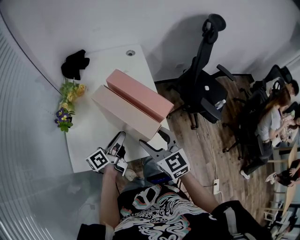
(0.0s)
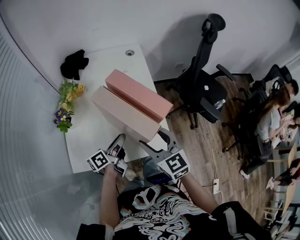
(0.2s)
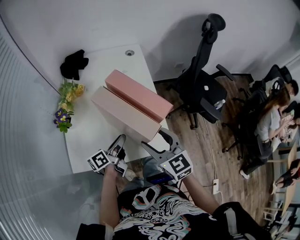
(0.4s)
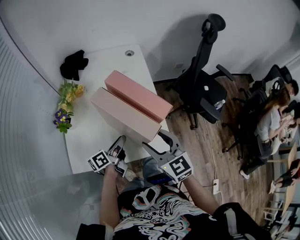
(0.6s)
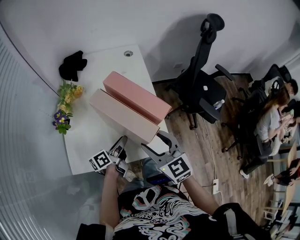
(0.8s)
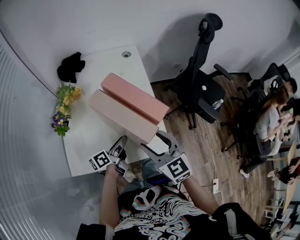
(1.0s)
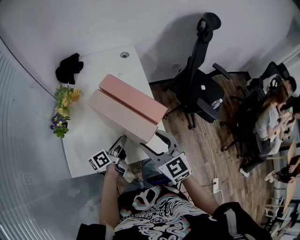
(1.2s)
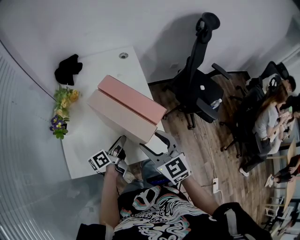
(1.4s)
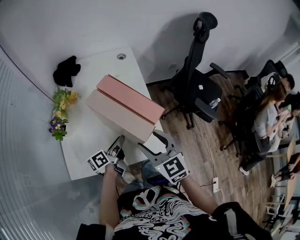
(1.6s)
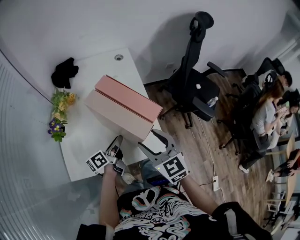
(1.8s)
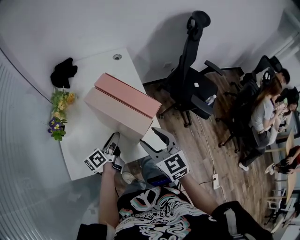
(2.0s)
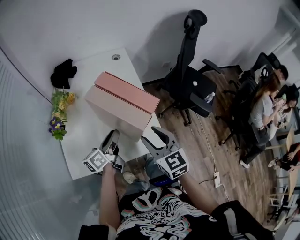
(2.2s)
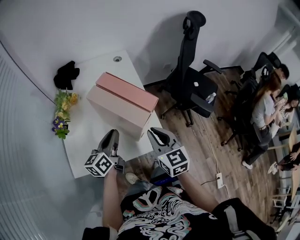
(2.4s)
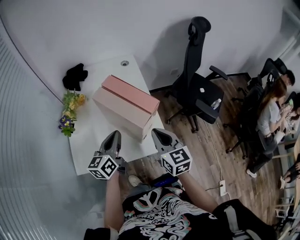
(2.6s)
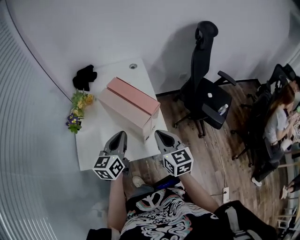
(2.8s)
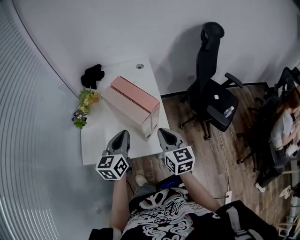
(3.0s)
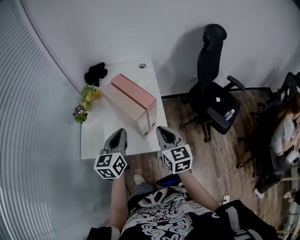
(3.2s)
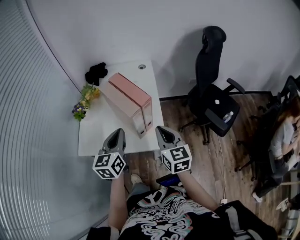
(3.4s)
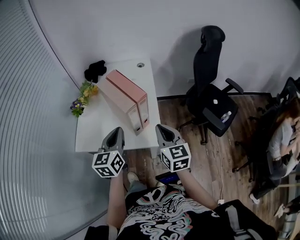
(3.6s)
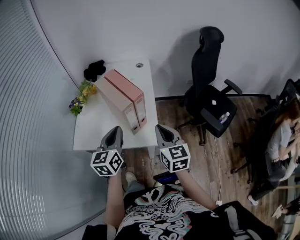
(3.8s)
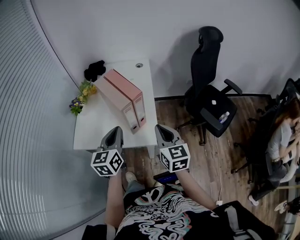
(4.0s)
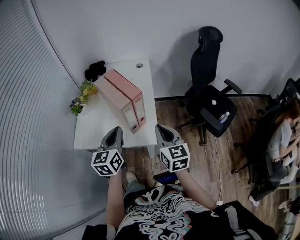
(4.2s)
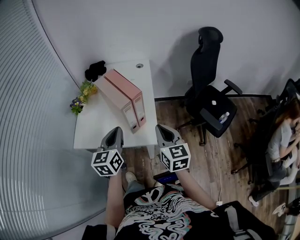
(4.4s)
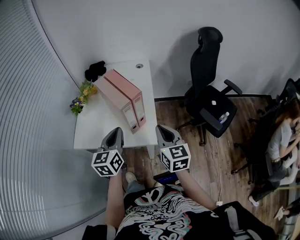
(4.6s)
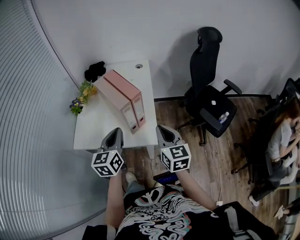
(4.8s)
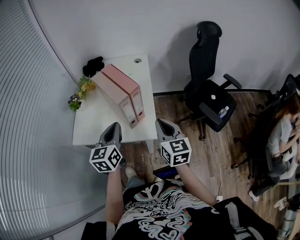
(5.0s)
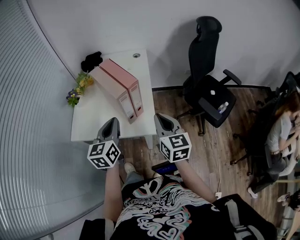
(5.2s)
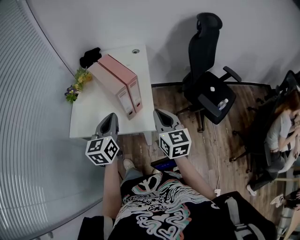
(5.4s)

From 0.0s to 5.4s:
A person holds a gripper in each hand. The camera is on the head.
From 0.0s to 1.4s: The left gripper shifts by about 5 cm.
From 1.4s to 2.8s: The left gripper shifts some 15 cm upward, rolls clockwise, seen from behind, by roughly 50 degrees, and closes up; the right gripper goes about 5 cm to the right, and closes up.
From 2.8s to 4.0s: The right gripper moves to the right and backward, about 10 cm; the left gripper shifts roughly 10 cm backward and to the right.
From 4.0s to 5.4s: Both grippers stay about where they are.

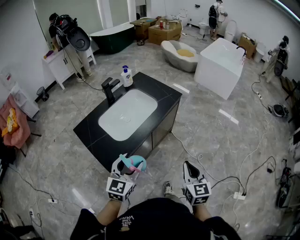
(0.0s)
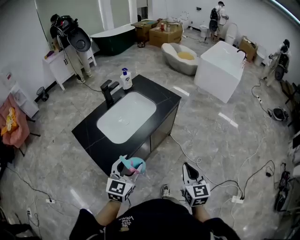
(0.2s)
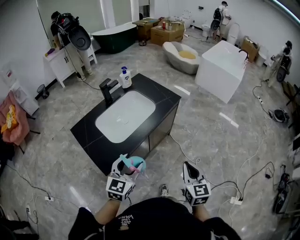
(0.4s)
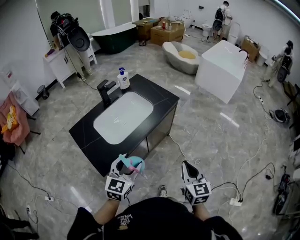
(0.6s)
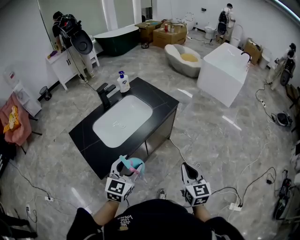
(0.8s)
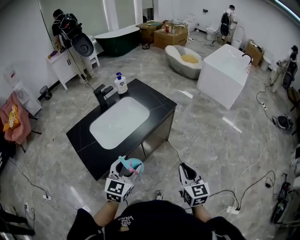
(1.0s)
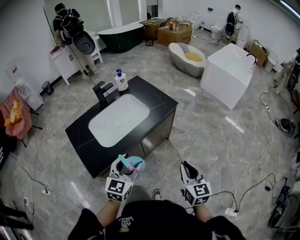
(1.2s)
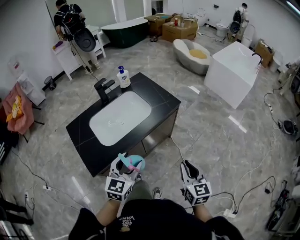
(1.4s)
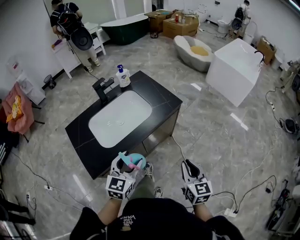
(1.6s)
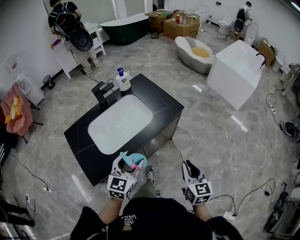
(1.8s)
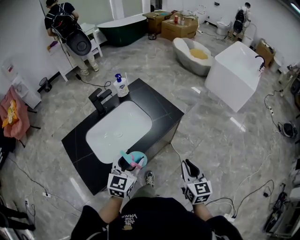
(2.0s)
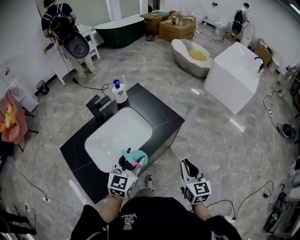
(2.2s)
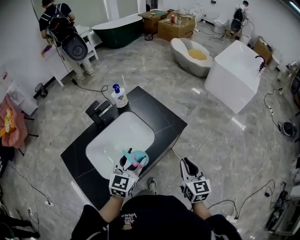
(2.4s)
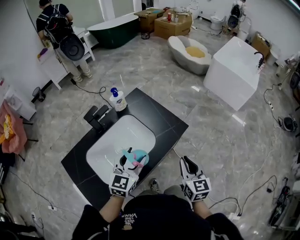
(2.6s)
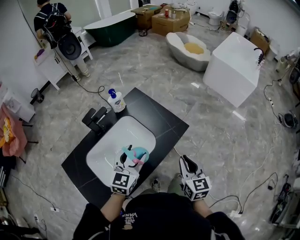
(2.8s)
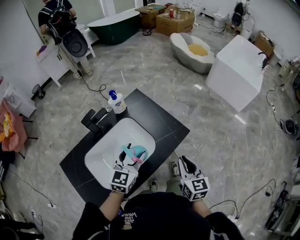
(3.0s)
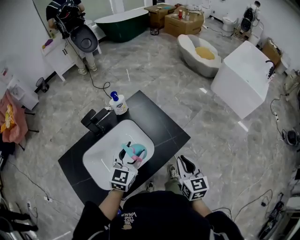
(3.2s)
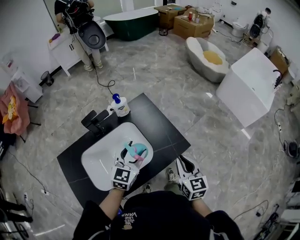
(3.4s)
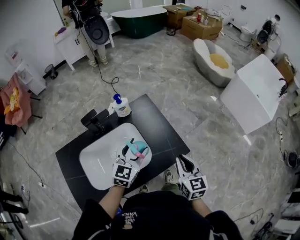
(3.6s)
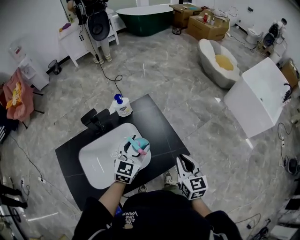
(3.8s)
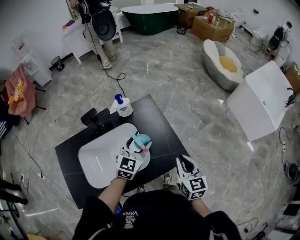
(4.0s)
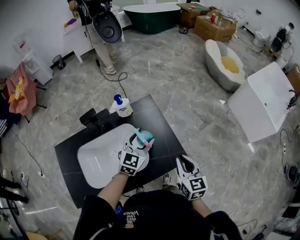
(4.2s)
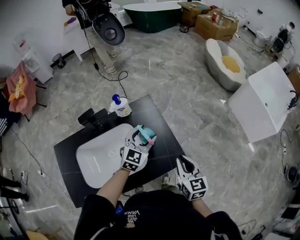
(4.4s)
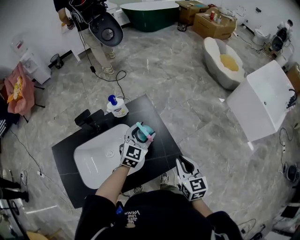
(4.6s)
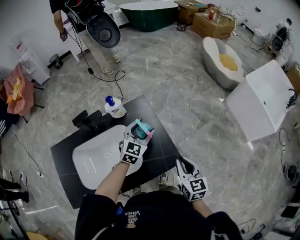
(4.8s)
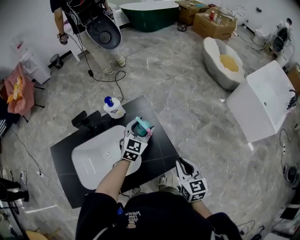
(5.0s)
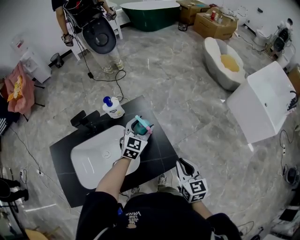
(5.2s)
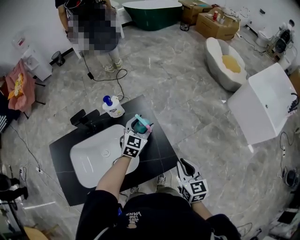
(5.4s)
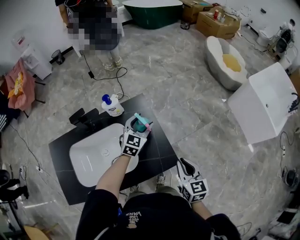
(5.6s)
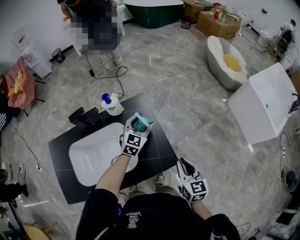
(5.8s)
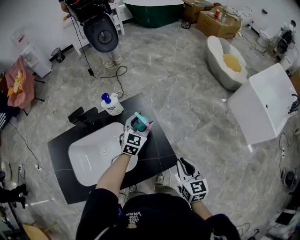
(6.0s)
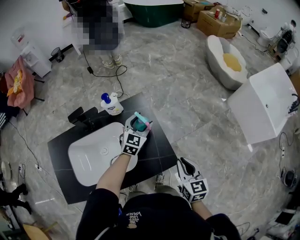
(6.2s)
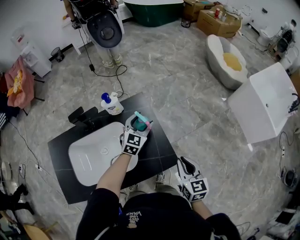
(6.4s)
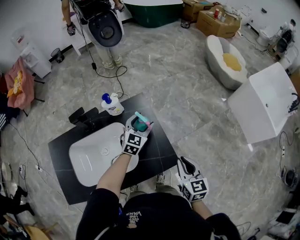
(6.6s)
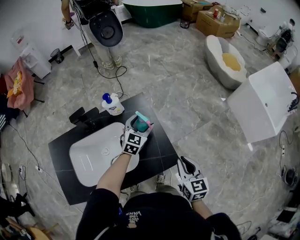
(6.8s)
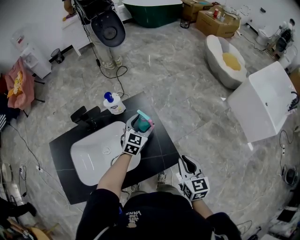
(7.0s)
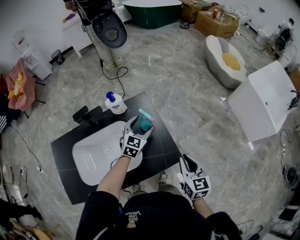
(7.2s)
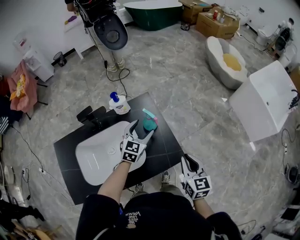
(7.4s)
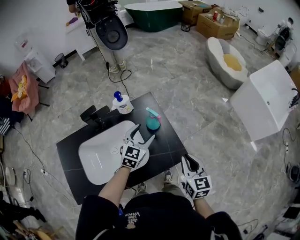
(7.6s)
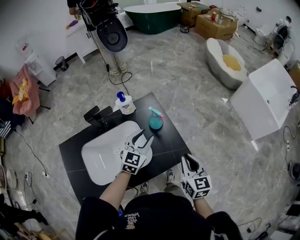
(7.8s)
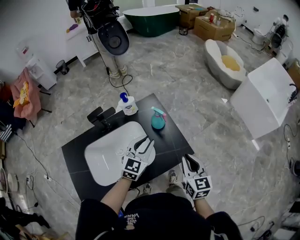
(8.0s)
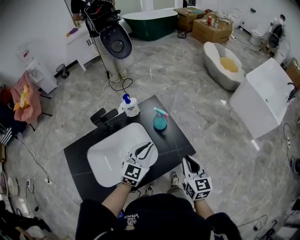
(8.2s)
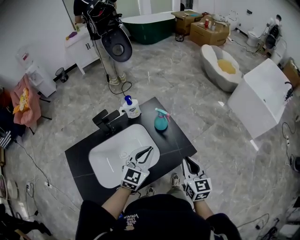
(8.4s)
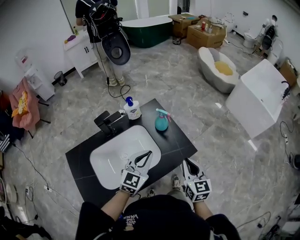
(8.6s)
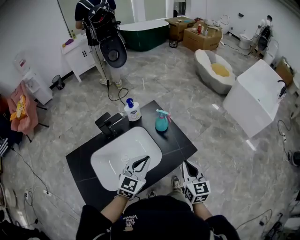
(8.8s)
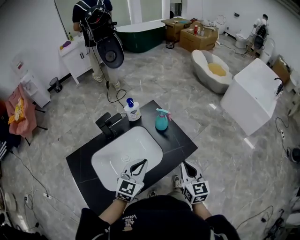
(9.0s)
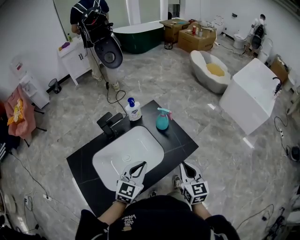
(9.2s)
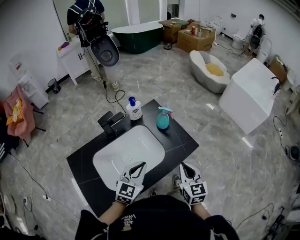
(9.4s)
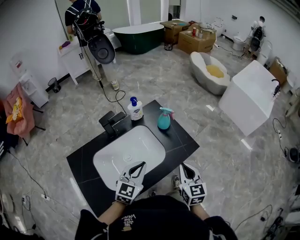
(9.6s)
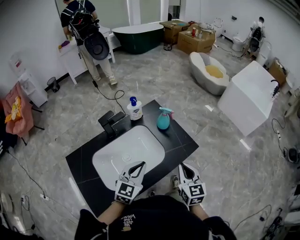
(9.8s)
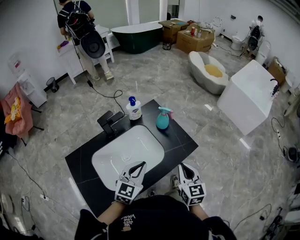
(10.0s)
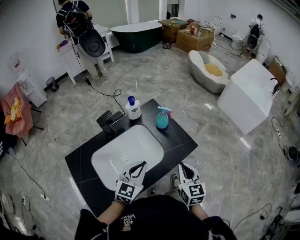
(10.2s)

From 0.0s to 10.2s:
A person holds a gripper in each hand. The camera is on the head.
From 0.0s to 1.4s: The right gripper moves forward and to the right, some 15 cm. The left gripper is displaced to the right and forward by some 15 cm.
From 1.4s to 3.0s: Both grippers travel together forward, approximately 30 cm.
From 3.0s to 4.4s: The right gripper heads forward, covering approximately 15 cm, and changes its angle by some 20 degrees. Meanwhile the left gripper goes roughly 20 cm forward and to the right.
From 4.4s to 5.8s: The right gripper moves to the right, roughly 5 cm, while the left gripper moves forward, some 10 cm.
From 5.8s to 7.2s: The grippers make only small movements.
From 7.2s to 8.8s: The left gripper is displaced backward and upward by approximately 25 cm, and closes its fingers. Meanwhile the right gripper moves backward and to the left, some 15 cm.
From 8.8s to 10.2s: The right gripper moves approximately 5 cm, while the left gripper moves approximately 5 cm.

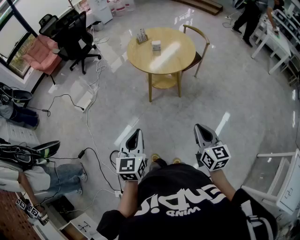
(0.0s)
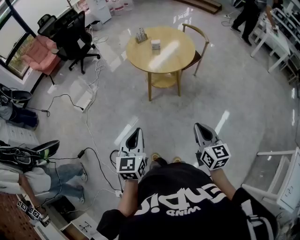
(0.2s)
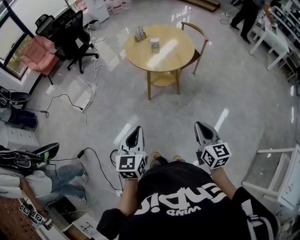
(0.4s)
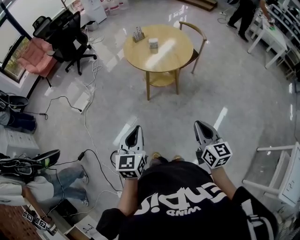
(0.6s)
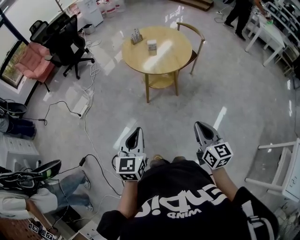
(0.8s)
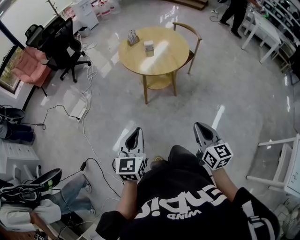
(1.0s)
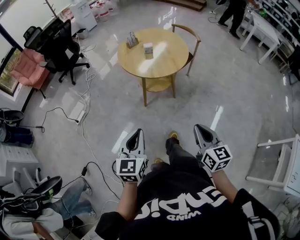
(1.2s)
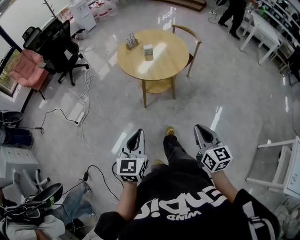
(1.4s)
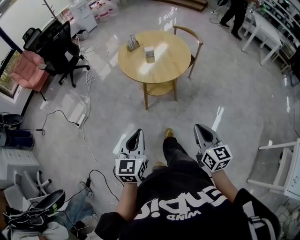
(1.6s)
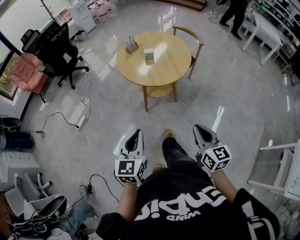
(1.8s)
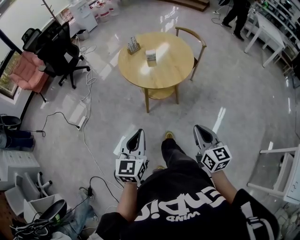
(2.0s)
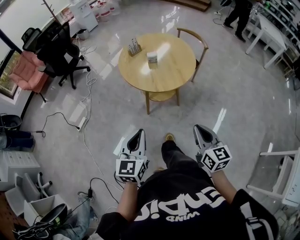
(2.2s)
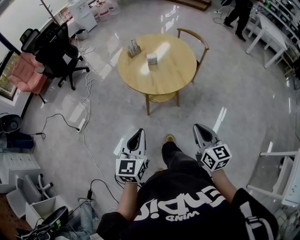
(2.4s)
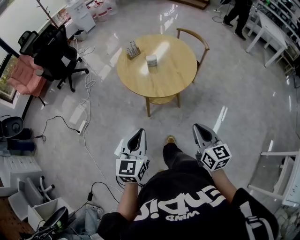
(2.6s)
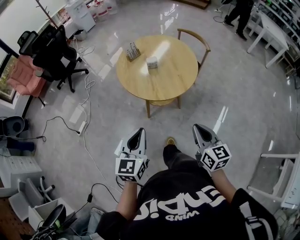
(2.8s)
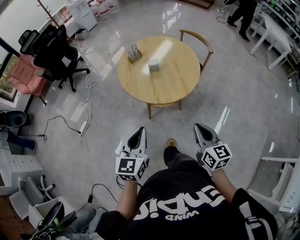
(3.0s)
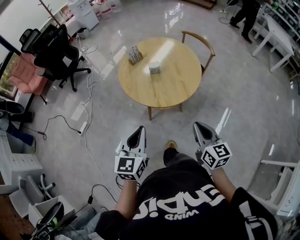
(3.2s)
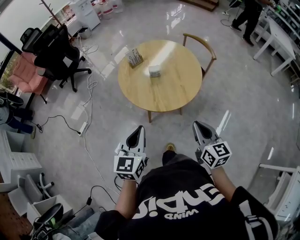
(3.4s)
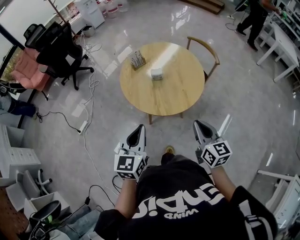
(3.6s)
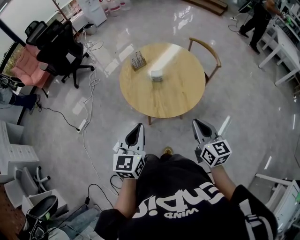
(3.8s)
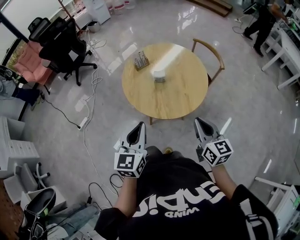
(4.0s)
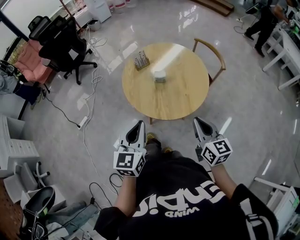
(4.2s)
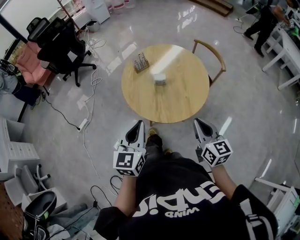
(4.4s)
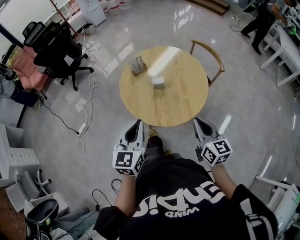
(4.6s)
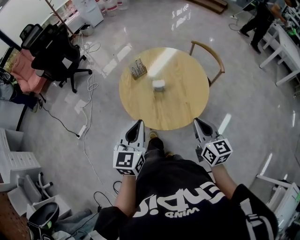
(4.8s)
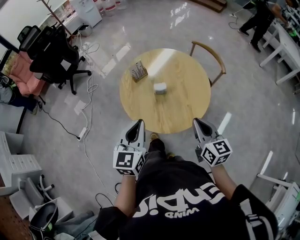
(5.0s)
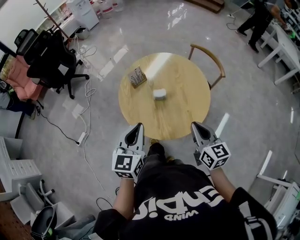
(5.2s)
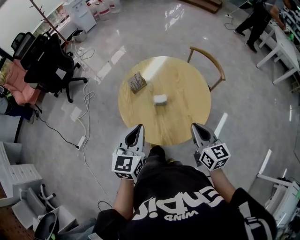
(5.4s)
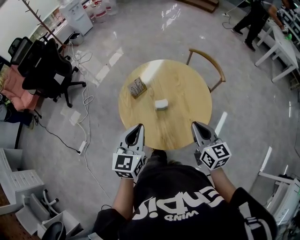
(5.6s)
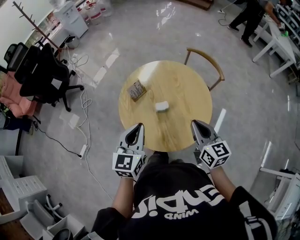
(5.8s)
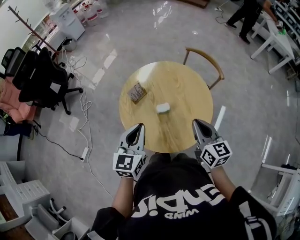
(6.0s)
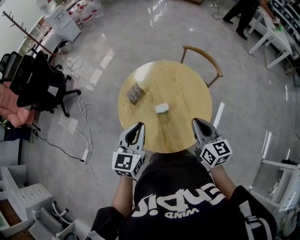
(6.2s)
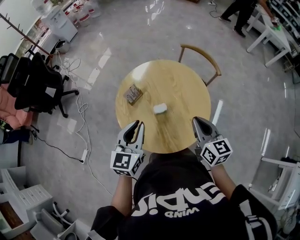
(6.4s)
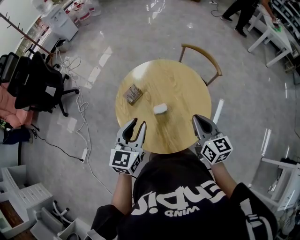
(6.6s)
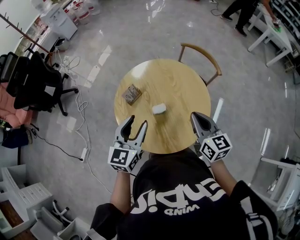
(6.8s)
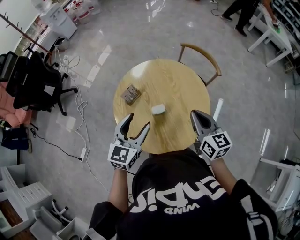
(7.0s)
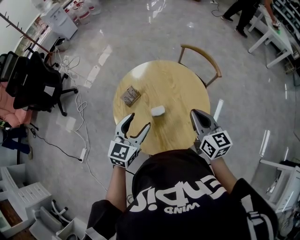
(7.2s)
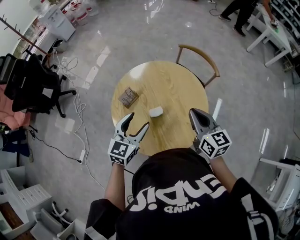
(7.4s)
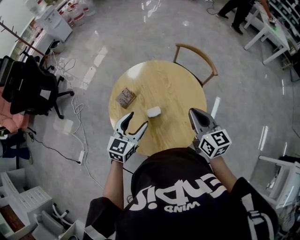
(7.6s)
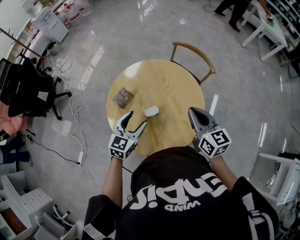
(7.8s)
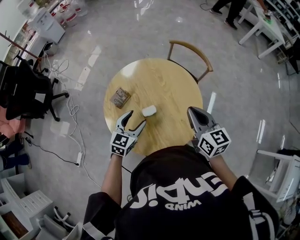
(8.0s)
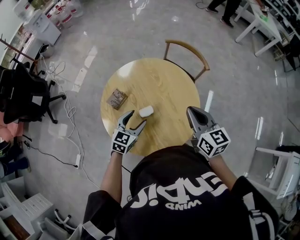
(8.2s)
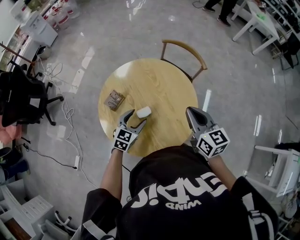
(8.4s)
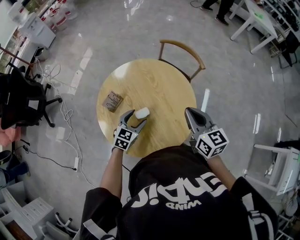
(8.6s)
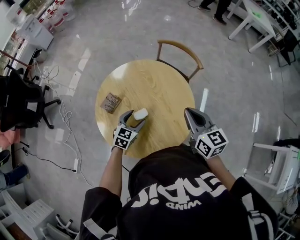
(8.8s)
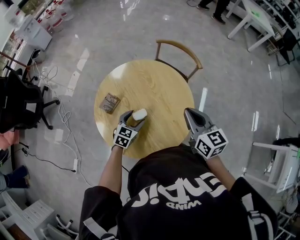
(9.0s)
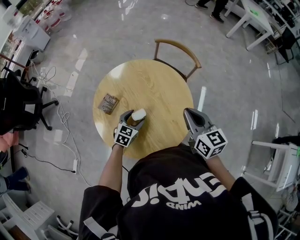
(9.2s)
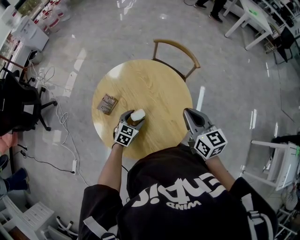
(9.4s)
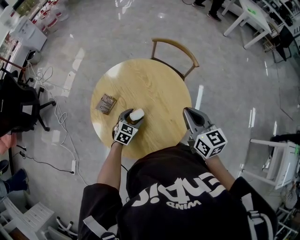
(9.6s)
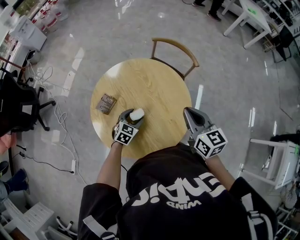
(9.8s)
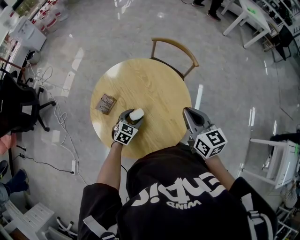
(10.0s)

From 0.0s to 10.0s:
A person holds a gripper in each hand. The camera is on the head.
From 0.0s to 1.4s: The left gripper travels forward by some 10 cm; the right gripper ends up approximately 5 cm from where it was.
From 1.4s to 2.8s: Both grippers move forward, roughly 20 cm.
From 2.8s to 4.2s: The grippers both shift forward by approximately 15 cm.
From 4.2s to 5.8s: Both grippers travel together forward, some 20 cm.
From 5.8s to 7.2s: The two grippers go approximately 10 cm forward. The left gripper opens.
From 7.2s to 8.6s: The left gripper shifts roughly 15 cm downward.
From 8.6s to 10.0s: The left gripper shifts about 5 cm downward.
